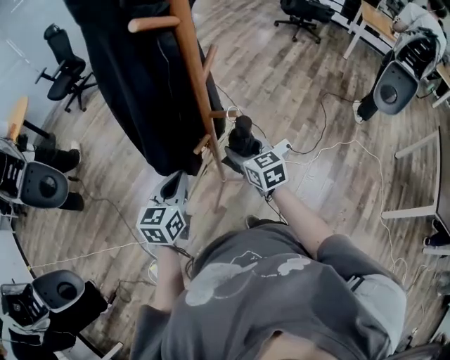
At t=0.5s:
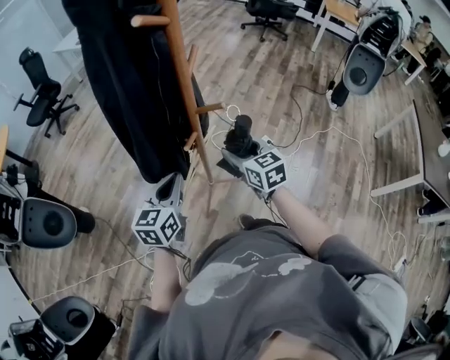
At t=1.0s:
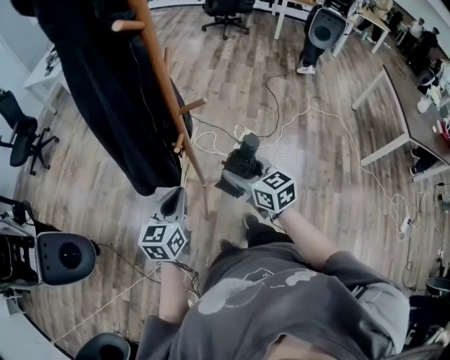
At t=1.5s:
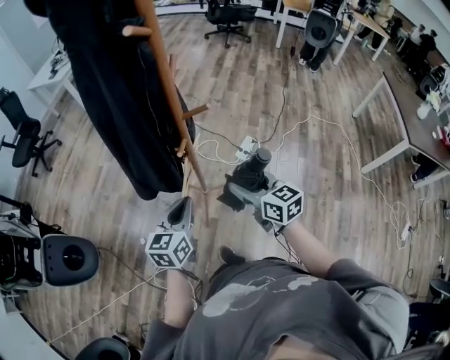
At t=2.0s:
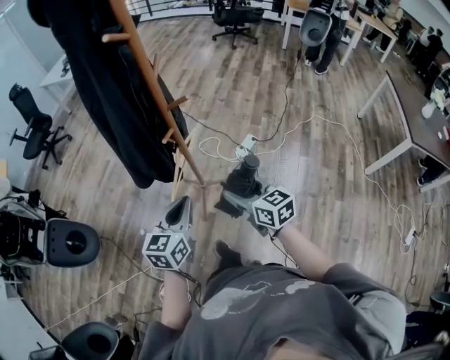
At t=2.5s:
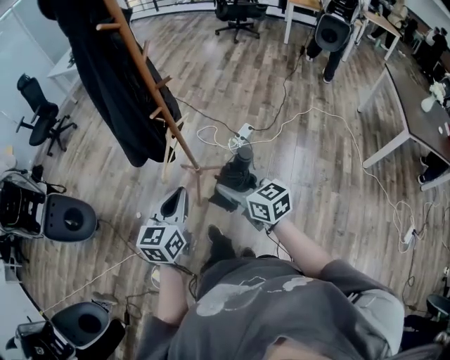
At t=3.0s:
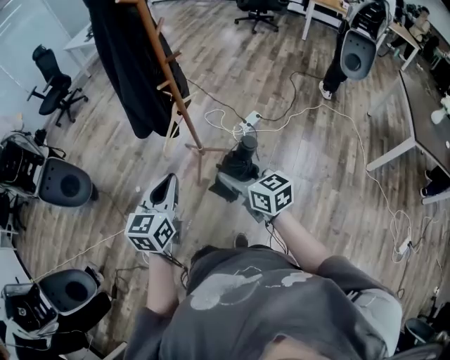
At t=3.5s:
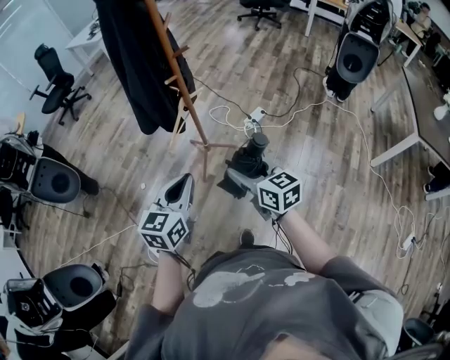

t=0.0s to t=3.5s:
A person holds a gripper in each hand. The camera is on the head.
t=0.0s to t=2.0s: The right gripper heads backward, covering about 25 cm; the left gripper shifts some 20 cm backward.
t=2.0s to t=3.5s: The two grippers go about 20 cm backward.

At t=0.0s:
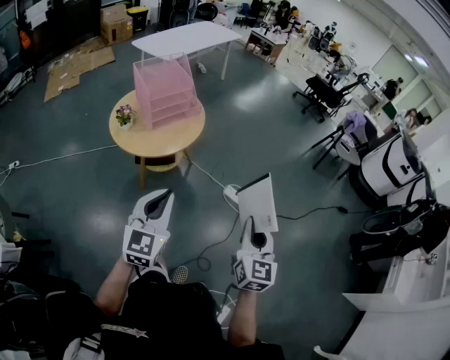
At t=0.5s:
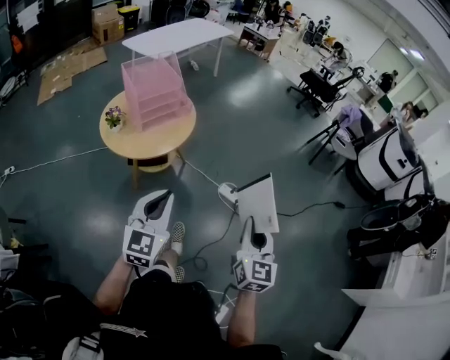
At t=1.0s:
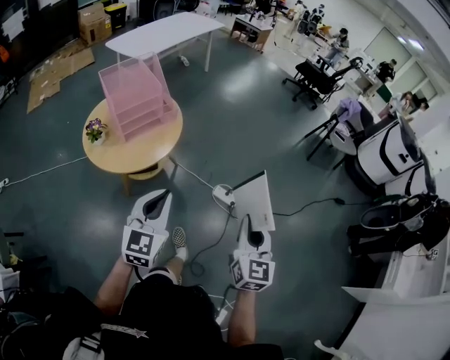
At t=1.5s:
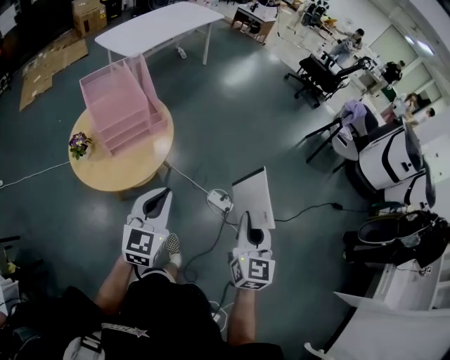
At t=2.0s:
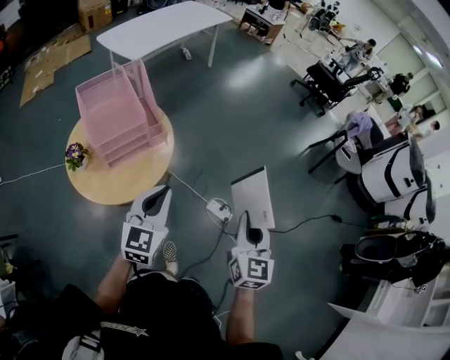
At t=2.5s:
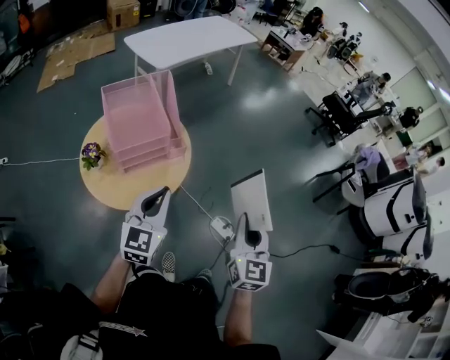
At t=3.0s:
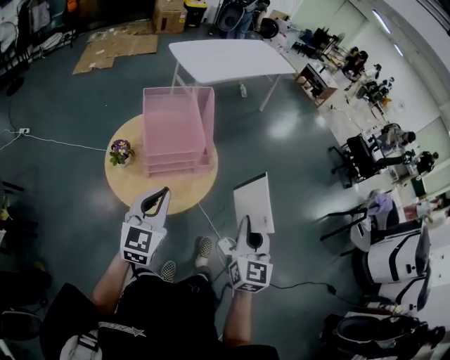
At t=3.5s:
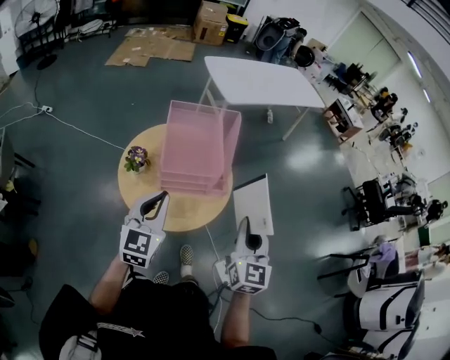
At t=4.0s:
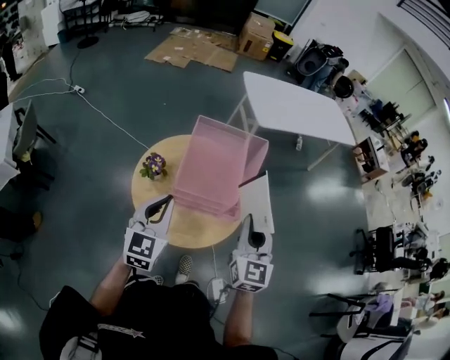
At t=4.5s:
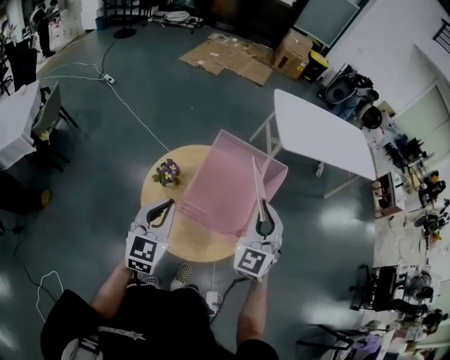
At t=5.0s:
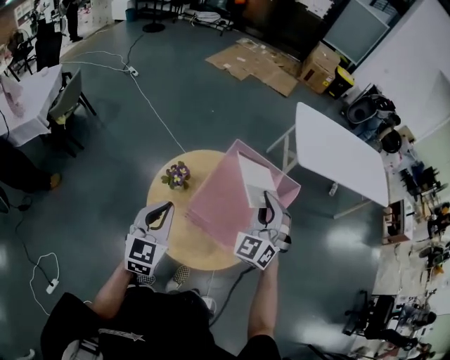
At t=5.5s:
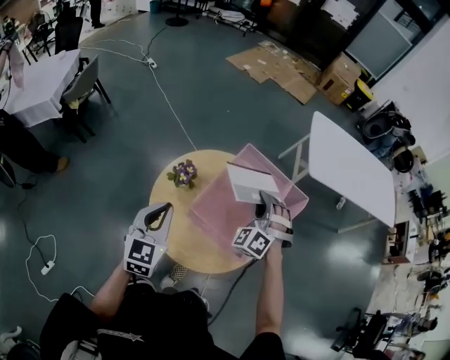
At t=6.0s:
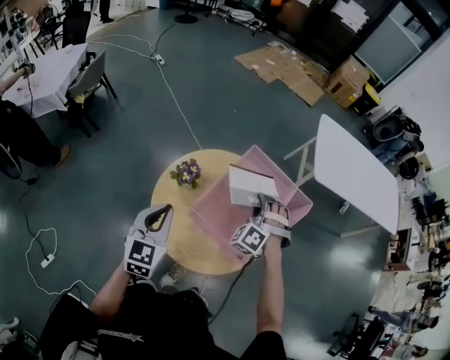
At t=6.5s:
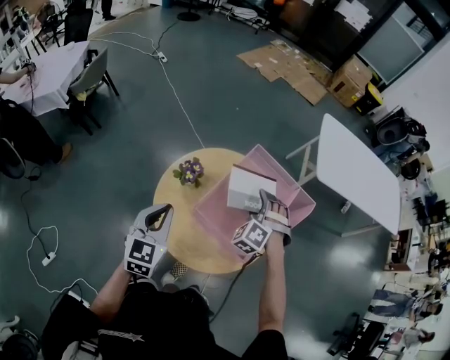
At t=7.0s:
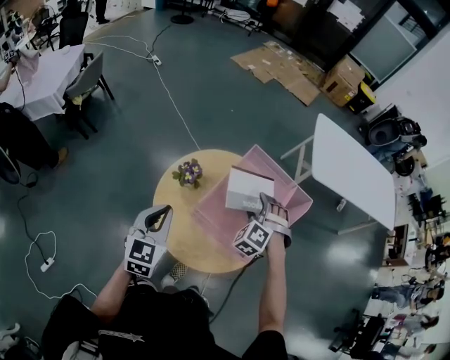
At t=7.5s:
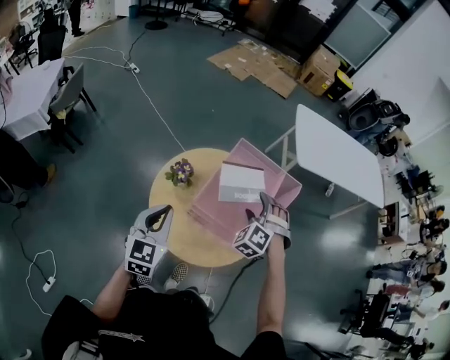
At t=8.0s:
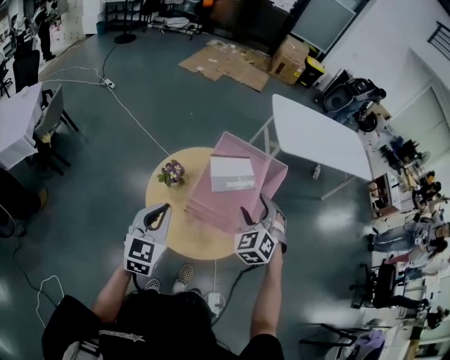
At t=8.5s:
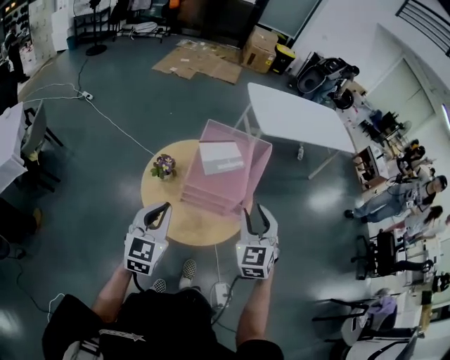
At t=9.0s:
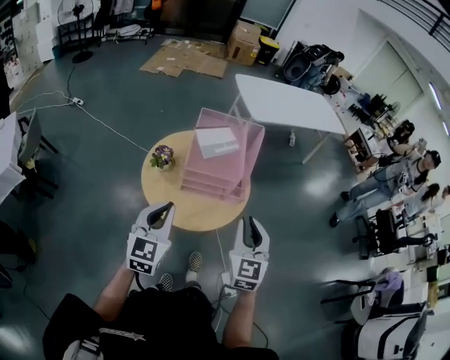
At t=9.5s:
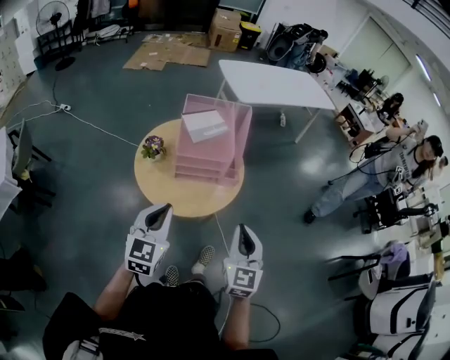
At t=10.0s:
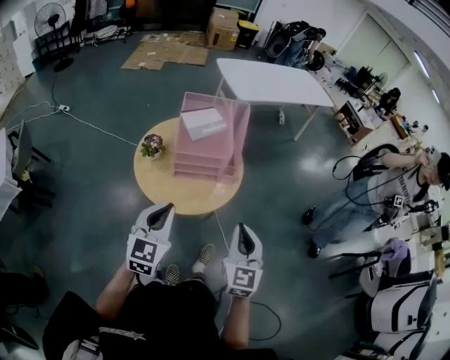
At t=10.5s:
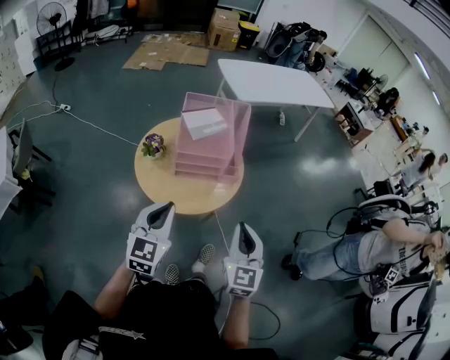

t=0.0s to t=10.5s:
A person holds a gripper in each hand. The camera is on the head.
t=0.0s to t=2.0s: Both grippers move forward, approximately 35 cm.
t=2.0s to t=4.0s: The right gripper shifts by roughly 40 cm, and changes its angle by roughly 50 degrees; the left gripper changes place by some 25 cm, and changes its angle by about 40 degrees.
t=4.0s to t=6.5s: The left gripper is displaced to the left and downward by some 10 cm, and swivels about 30 degrees. Meanwhile the right gripper heads forward and downward, covering roughly 30 cm, twists some 80 degrees counterclockwise, seen from behind, and opens up.
t=6.5s to t=8.5s: The left gripper heads backward and upward, covering approximately 10 cm, and changes its angle by roughly 30 degrees. The right gripper heads backward and upward, covering some 30 cm, rotates around the line of its fingers by about 50 degrees, clockwise from behind, and closes up.
t=8.5s to t=10.5s: The left gripper travels backward and to the right by approximately 10 cm. Meanwhile the right gripper shifts some 20 cm backward, swivels approximately 30 degrees, and closes up.

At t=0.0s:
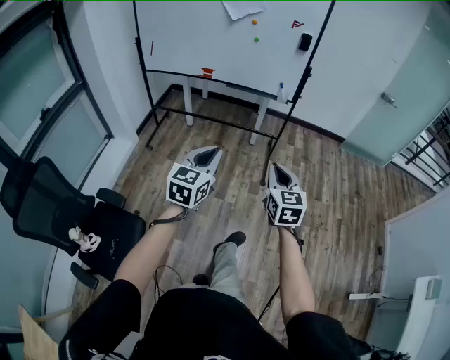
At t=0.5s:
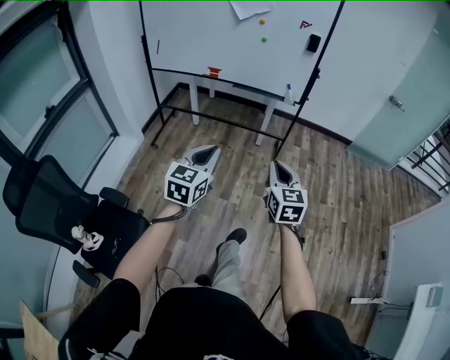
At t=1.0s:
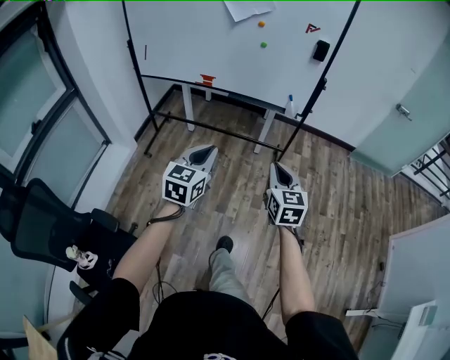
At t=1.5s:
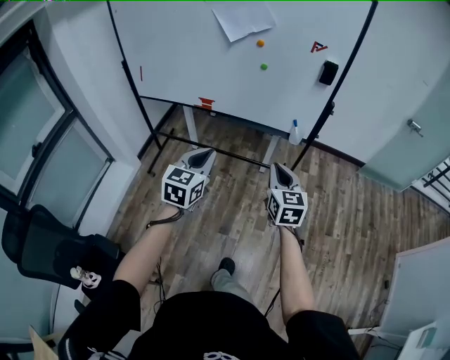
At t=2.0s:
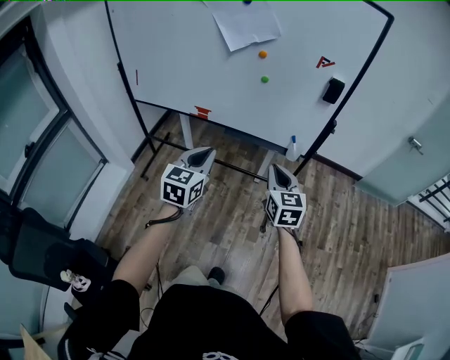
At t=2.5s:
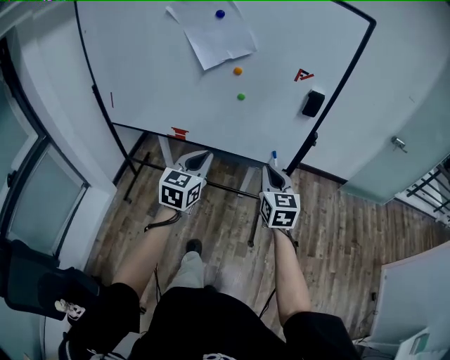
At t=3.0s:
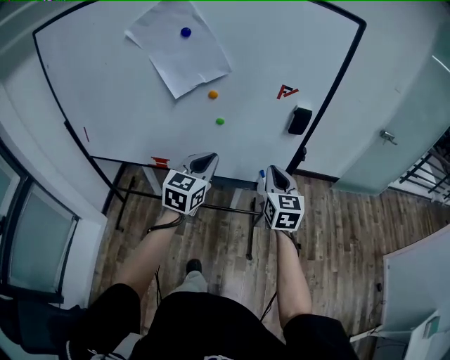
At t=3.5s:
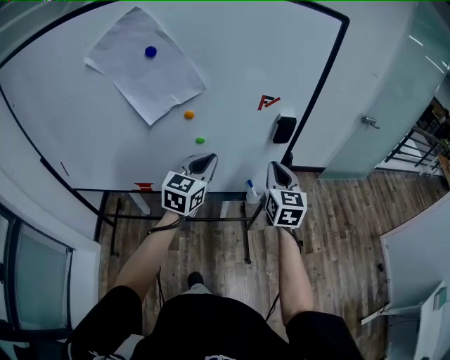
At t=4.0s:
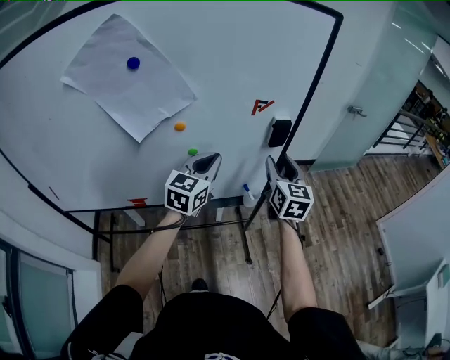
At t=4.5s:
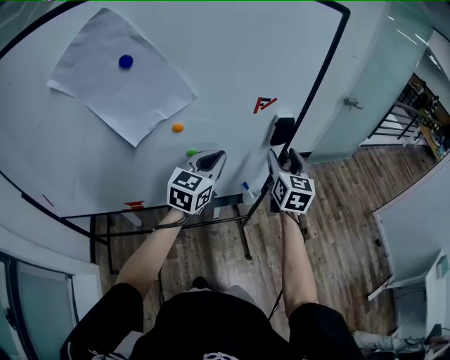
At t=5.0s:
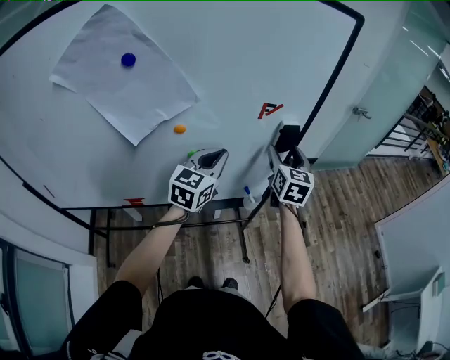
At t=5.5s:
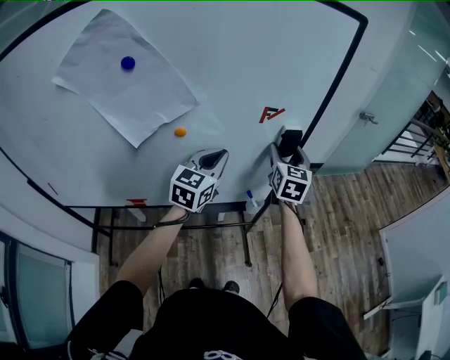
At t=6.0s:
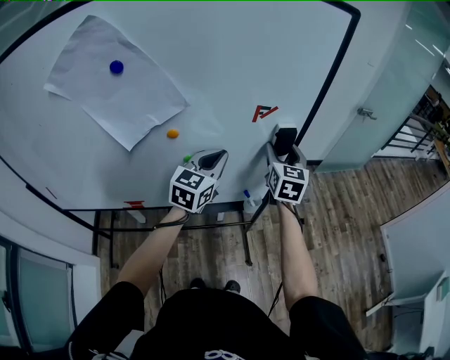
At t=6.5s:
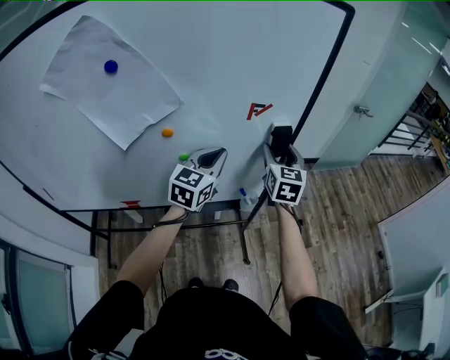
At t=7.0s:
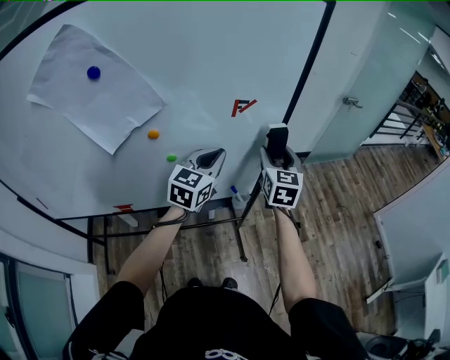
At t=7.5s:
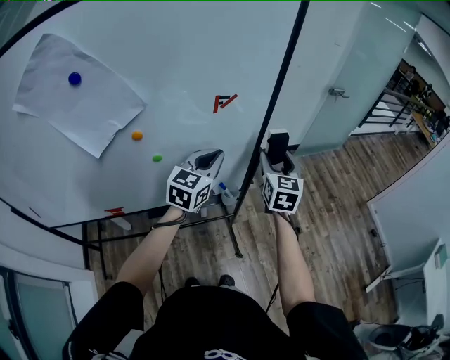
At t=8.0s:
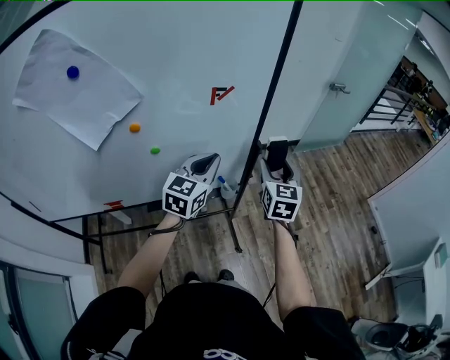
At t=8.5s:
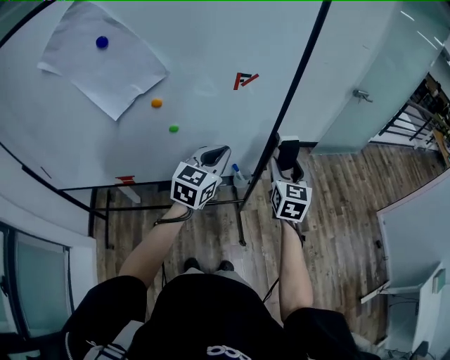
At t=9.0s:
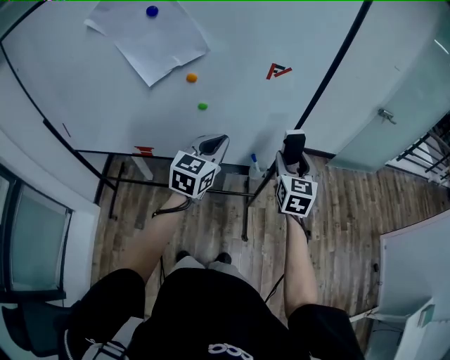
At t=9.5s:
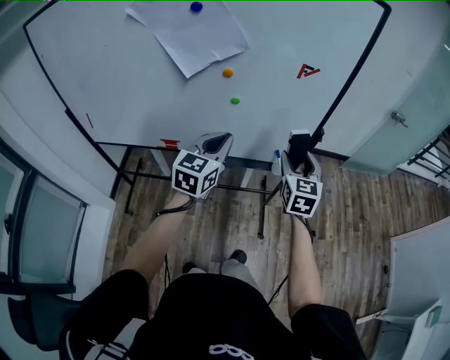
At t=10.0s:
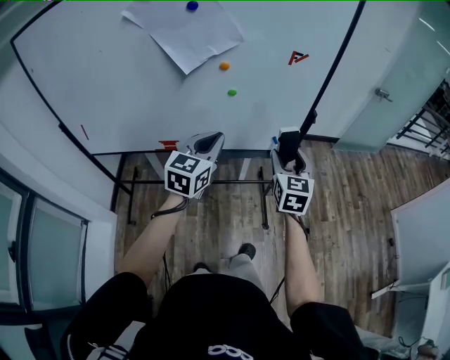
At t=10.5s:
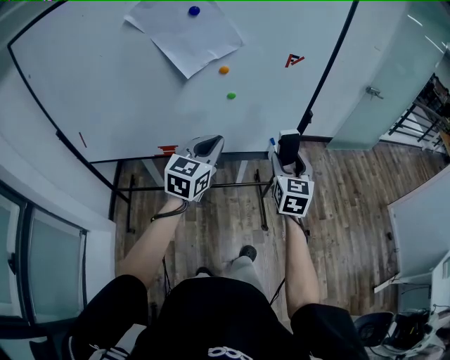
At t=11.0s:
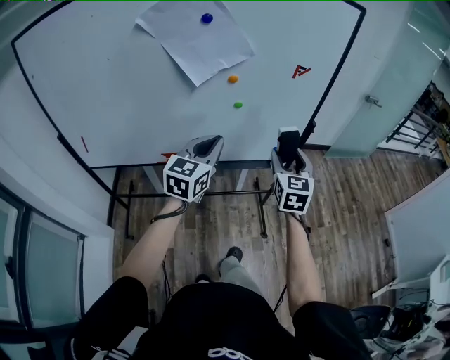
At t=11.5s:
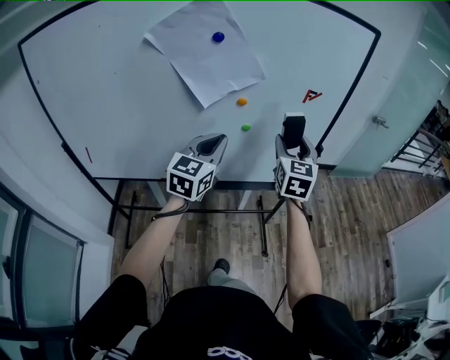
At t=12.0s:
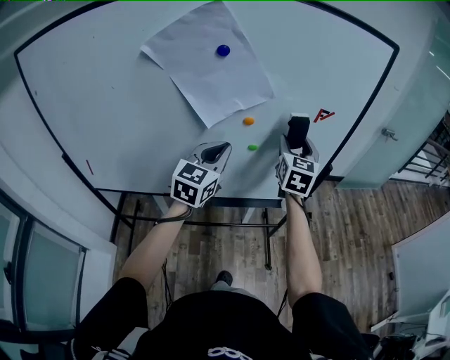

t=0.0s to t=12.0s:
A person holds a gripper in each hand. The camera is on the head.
t=0.0s to t=2.0s: The pair of grippers is taken forward, approximately 40 cm.
t=2.0s to t=4.0s: The right gripper shifts by some 30 cm, turns by approximately 30 degrees, and opens up, while the left gripper changes place by roughly 35 cm, and turns by some 30 degrees.
t=4.0s to t=6.0s: The left gripper moves forward, about 5 cm; the right gripper travels forward by roughly 10 cm.
t=6.0s to t=8.0s: The left gripper heads to the right, covering roughly 10 cm. Meanwhile the right gripper is displaced to the right and backward by roughly 15 cm.
t=8.0s to t=10.0s: The two grippers go approximately 25 cm backward and to the left.
t=10.0s to t=12.0s: The right gripper is displaced forward, to the left and upward by roughly 25 cm. The left gripper heads forward, to the left and upward, covering about 15 cm.
